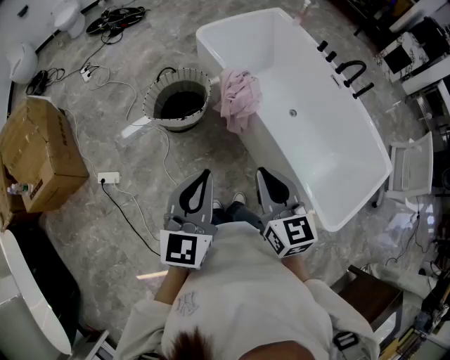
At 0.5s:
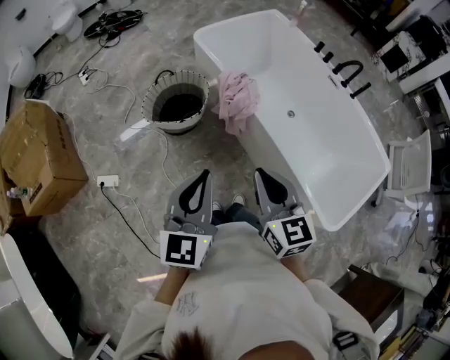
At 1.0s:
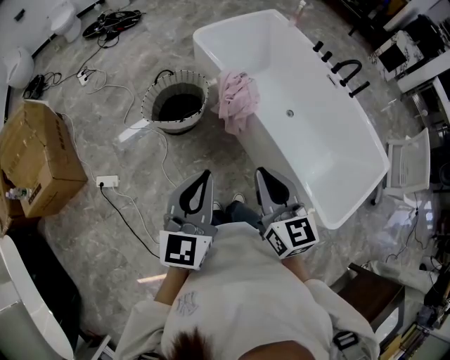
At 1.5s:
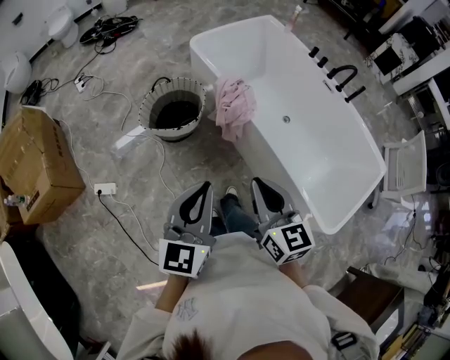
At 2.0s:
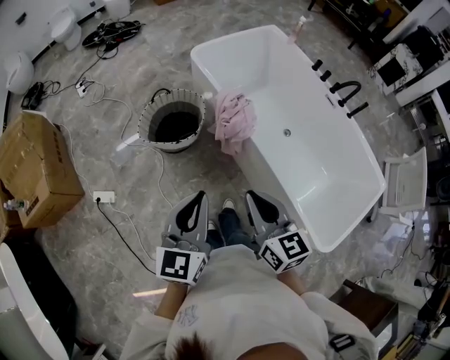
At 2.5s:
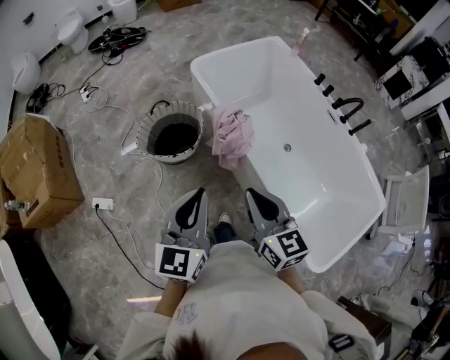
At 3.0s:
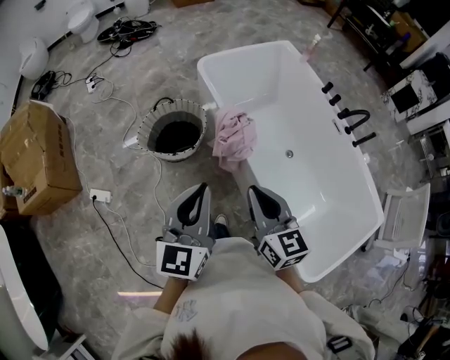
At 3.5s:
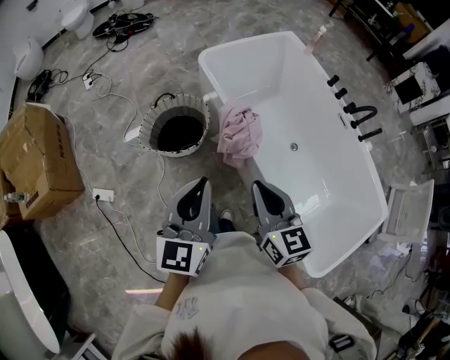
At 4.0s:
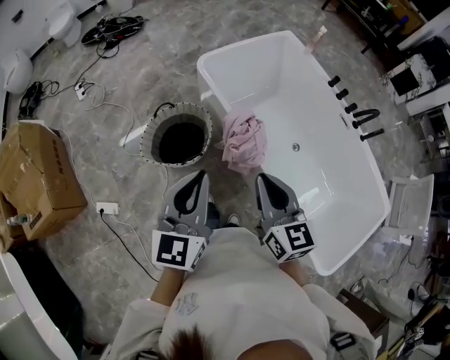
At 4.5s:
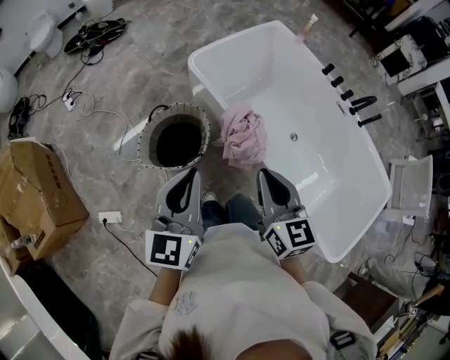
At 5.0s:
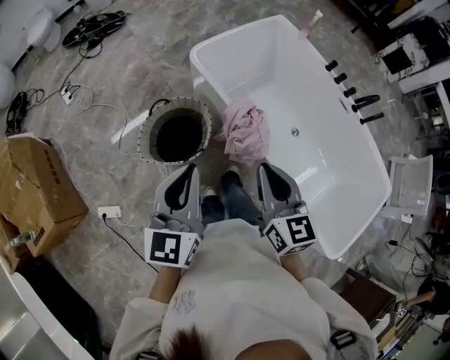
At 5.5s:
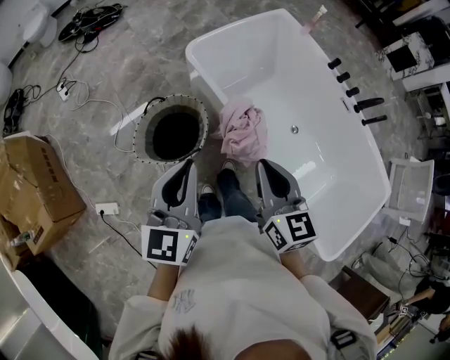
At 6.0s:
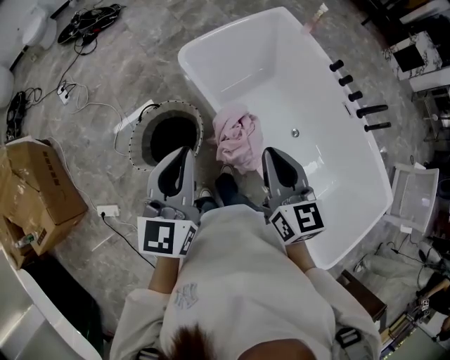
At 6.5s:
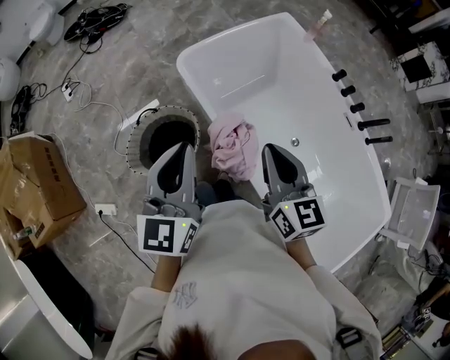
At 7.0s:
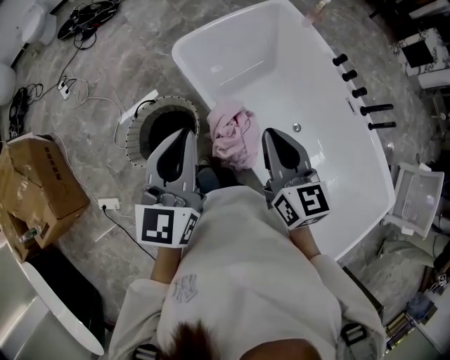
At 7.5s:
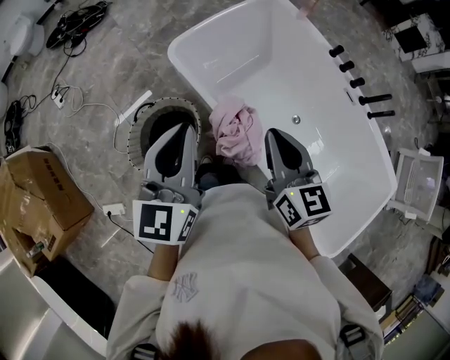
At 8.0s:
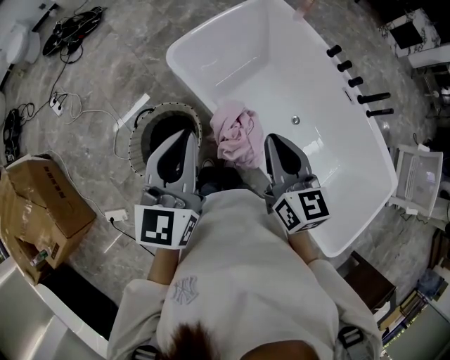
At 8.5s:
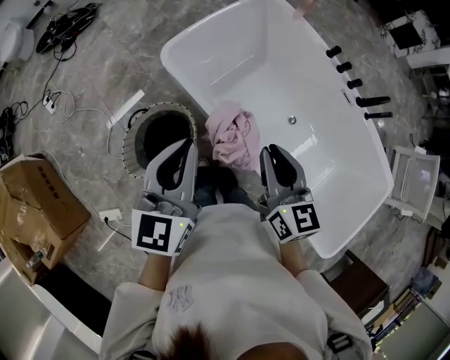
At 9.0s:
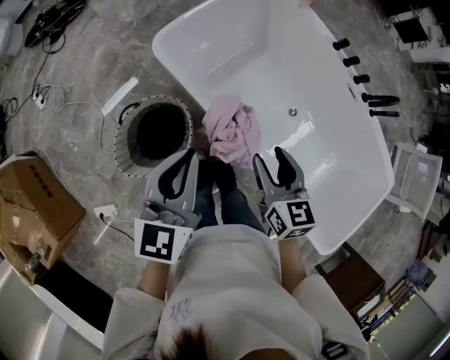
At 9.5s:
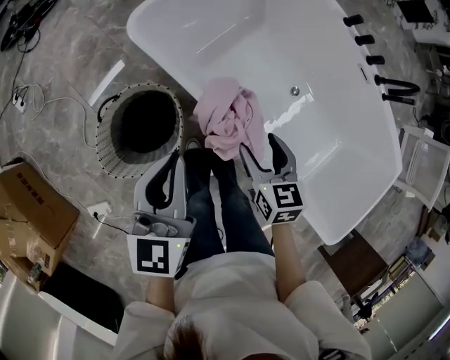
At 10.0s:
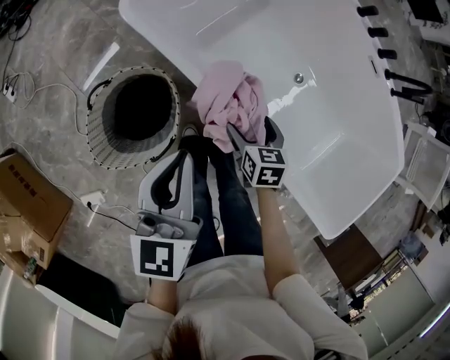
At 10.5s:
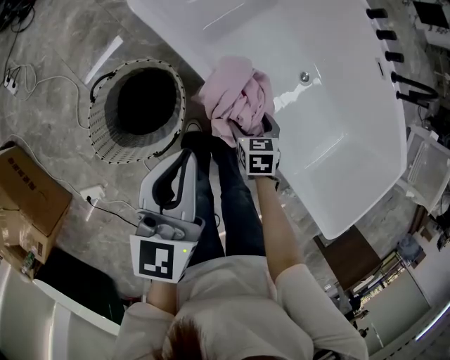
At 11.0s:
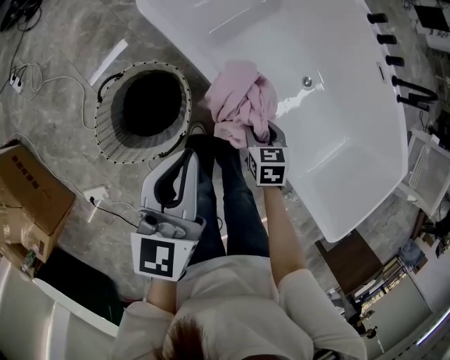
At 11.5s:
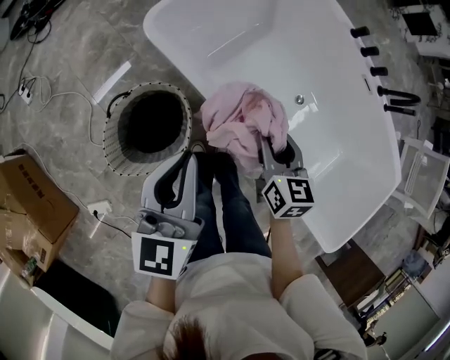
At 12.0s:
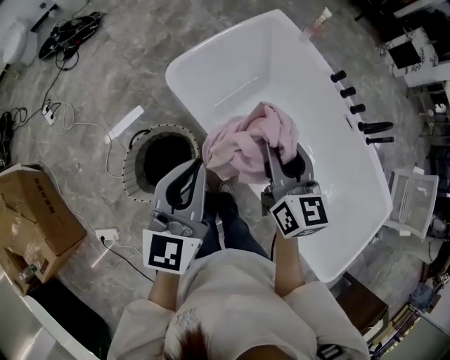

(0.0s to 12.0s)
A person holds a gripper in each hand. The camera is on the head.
0.0s - 2.0s: The grippers move only a little.
2.0s - 4.0s: Both grippers move forward, roughly 20 cm.
4.0s - 6.0s: Both grippers move forward, about 15 cm.
6.0s - 8.0s: The grippers both shift forward by about 5 cm.
8.0s - 10.0s: The right gripper shifts roughly 40 cm downward, points its fingers approximately 40 degrees further downward, and opens; the left gripper travels downward by roughly 20 cm, and rotates approximately 20 degrees.
10.0s - 12.0s: The right gripper is displaced upward by some 35 cm, tips its fingers upward by about 40 degrees, and closes. Meanwhile the left gripper is displaced upward by about 20 cm.

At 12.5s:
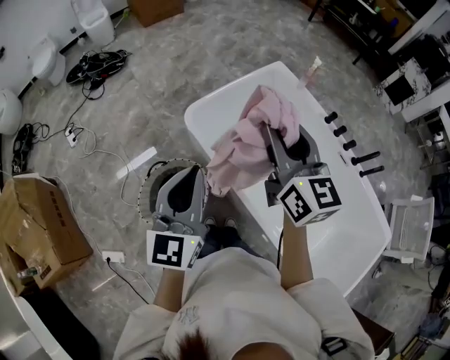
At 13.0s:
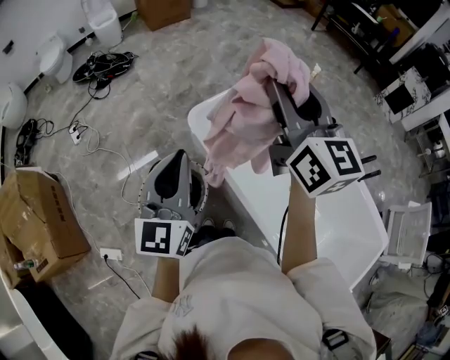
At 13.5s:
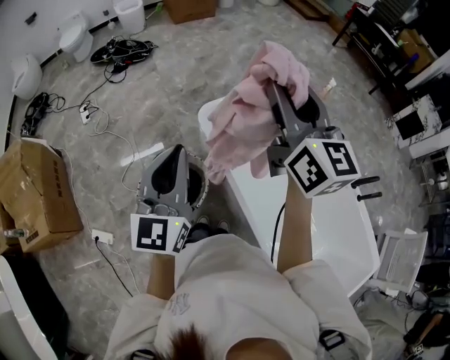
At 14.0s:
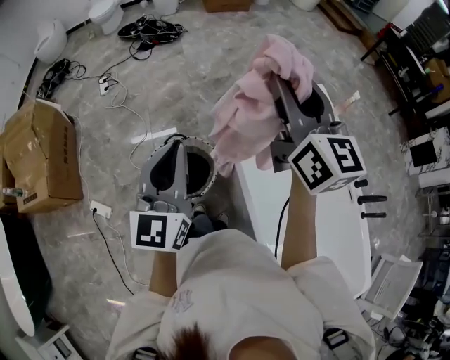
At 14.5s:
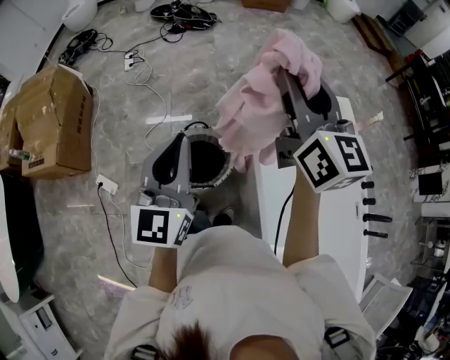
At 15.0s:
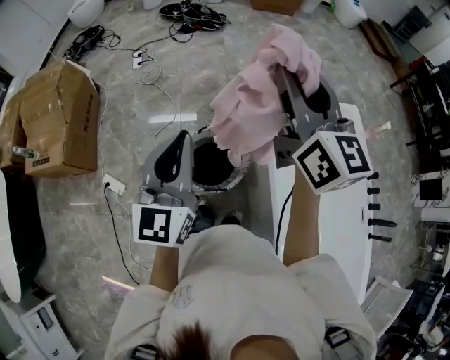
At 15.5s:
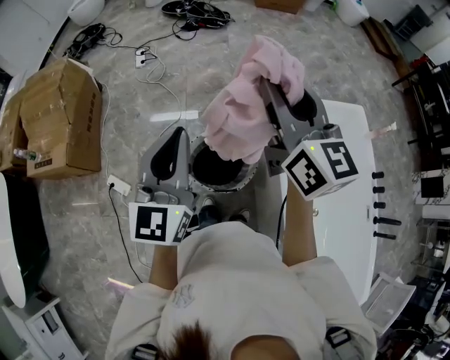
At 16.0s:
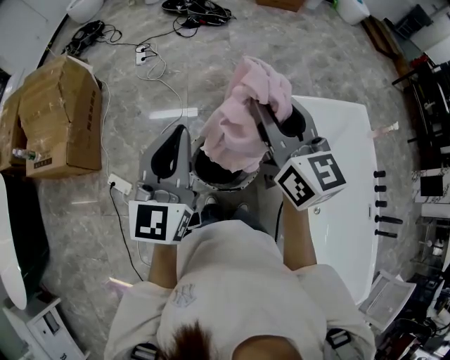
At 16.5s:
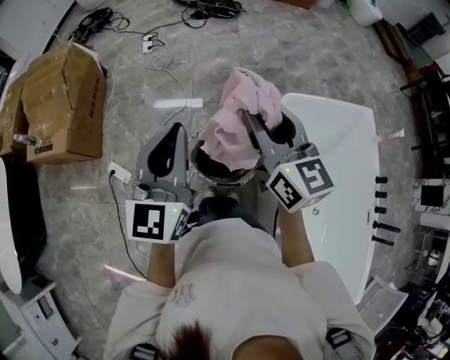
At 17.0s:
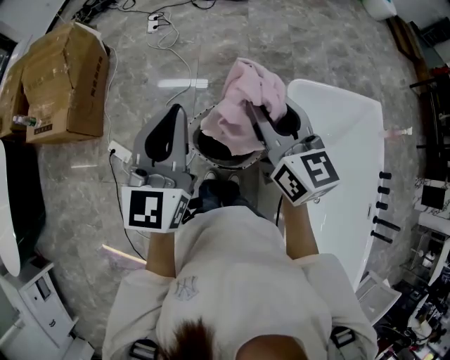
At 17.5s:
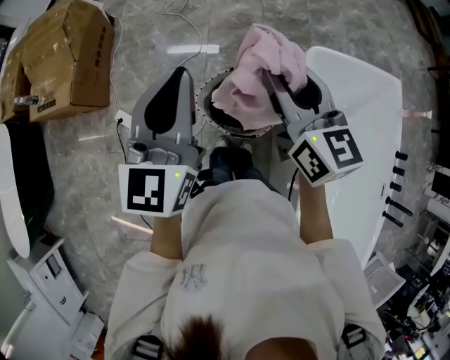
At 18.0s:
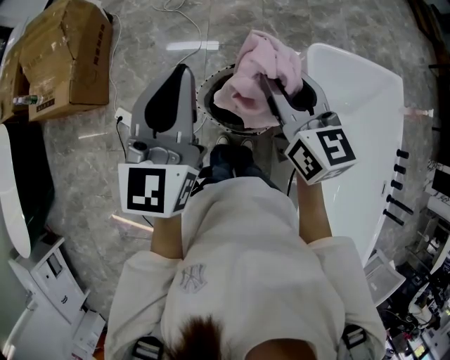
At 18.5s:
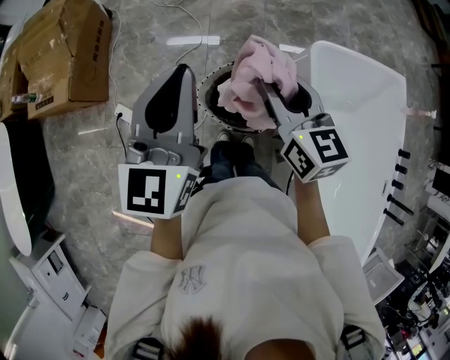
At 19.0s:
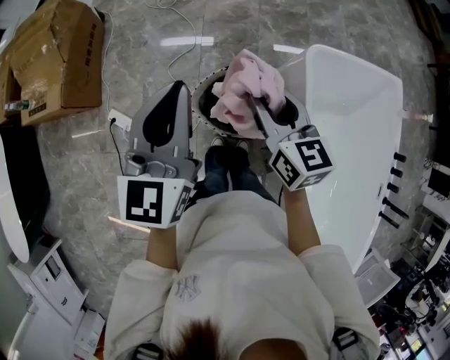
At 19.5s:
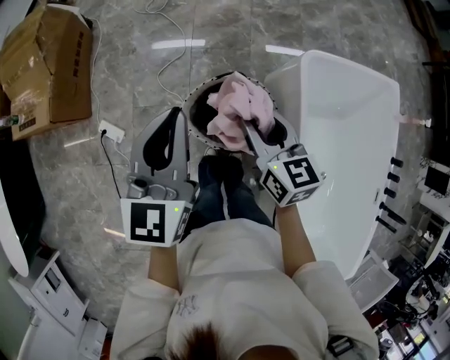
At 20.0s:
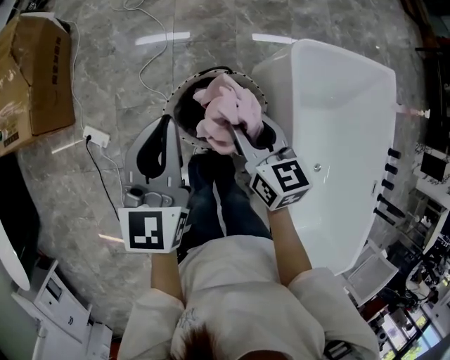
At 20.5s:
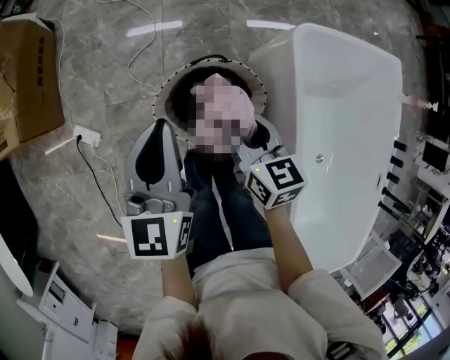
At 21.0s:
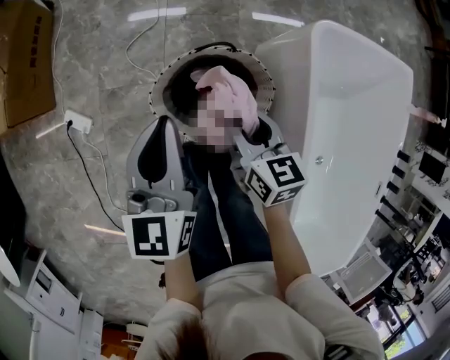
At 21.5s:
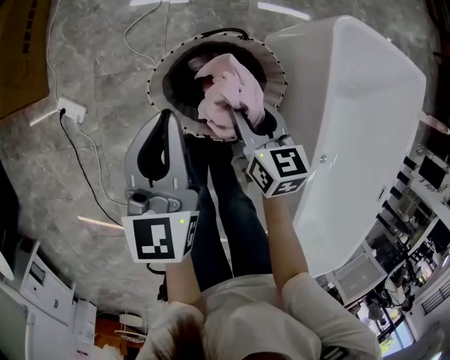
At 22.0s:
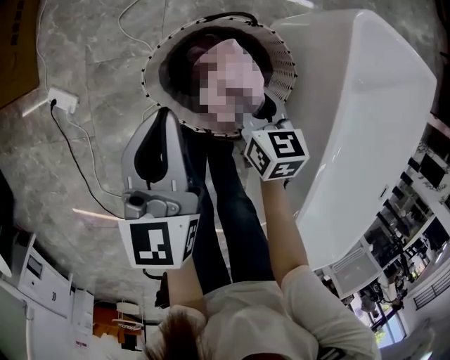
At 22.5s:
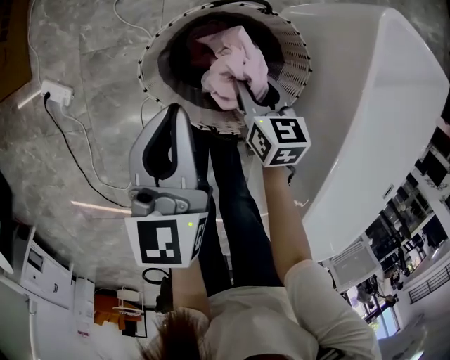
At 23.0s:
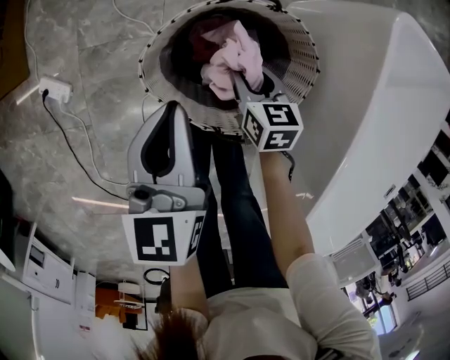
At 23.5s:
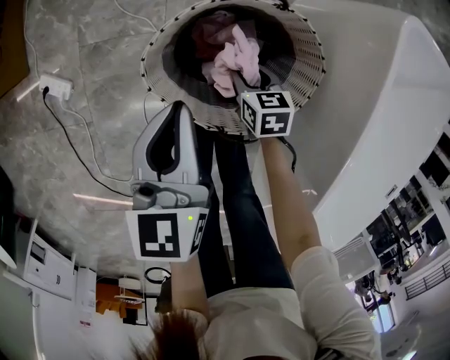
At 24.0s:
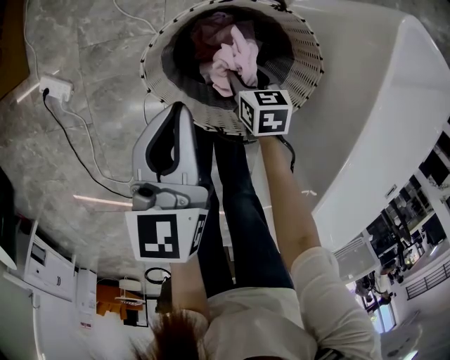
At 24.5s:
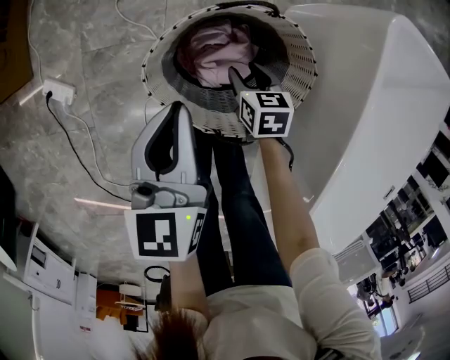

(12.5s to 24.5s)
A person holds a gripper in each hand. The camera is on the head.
12.5s - 14.5s: The left gripper changes place by about 15 cm, and turns by about 30 degrees. The right gripper changes place by roughly 20 cm, and changes its angle by approximately 30 degrees.
14.5s - 16.5s: The left gripper heads to the left, covering roughly 15 cm; the right gripper shifts about 25 cm to the left and downward.
16.5s - 18.5s: The right gripper moves downward, about 10 cm.
18.5s - 20.5s: The two grippers go some 25 cm downward.
20.5s - 22.5s: The two grippers go roughly 25 cm downward.
22.5s - 24.5s: The right gripper moves downward, roughly 10 cm.

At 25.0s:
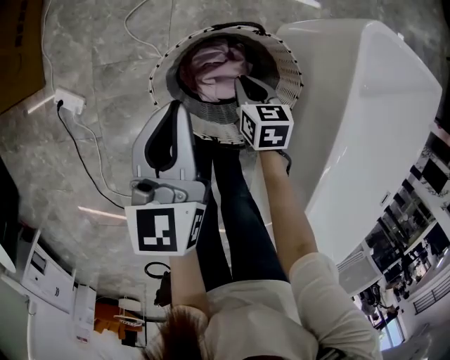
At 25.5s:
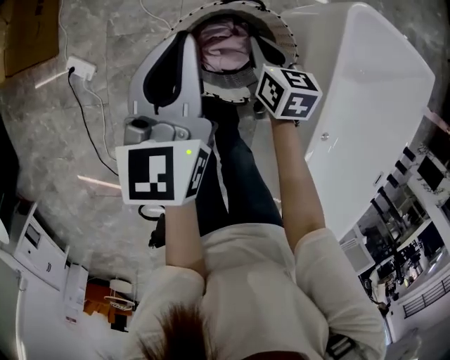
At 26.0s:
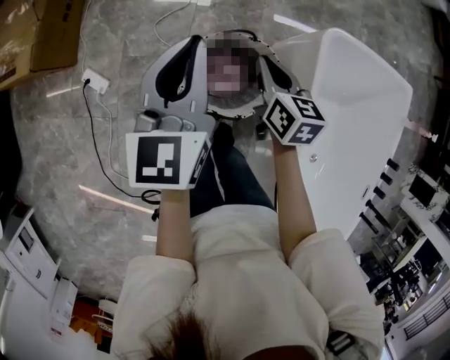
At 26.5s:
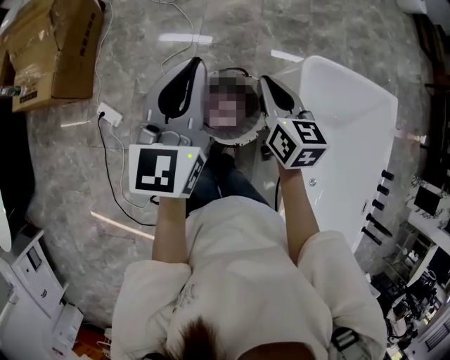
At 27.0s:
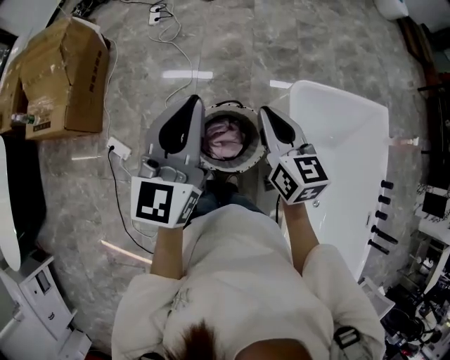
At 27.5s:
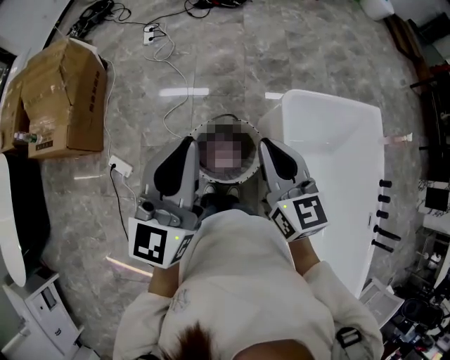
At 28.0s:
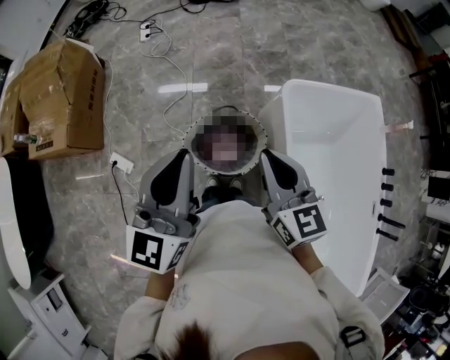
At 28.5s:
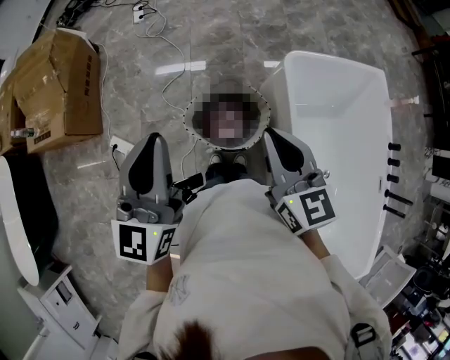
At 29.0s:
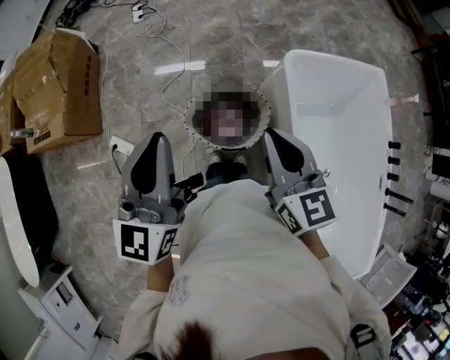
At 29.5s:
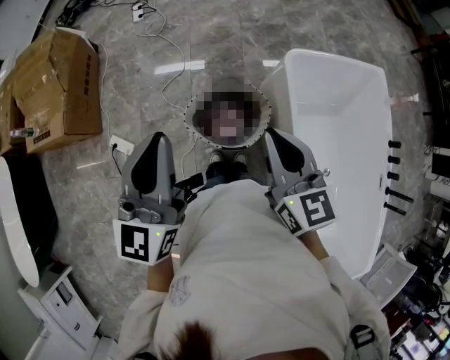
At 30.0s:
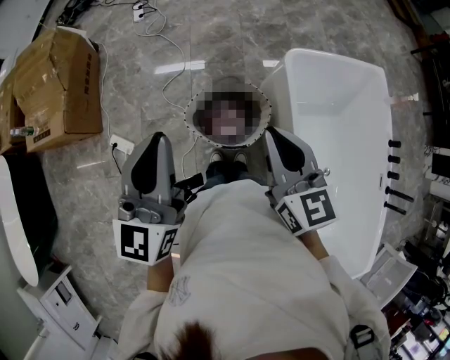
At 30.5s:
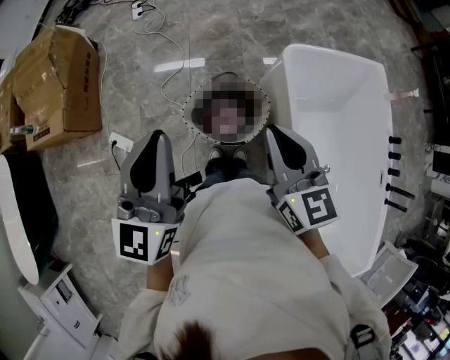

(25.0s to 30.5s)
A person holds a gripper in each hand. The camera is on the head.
25.0s - 27.0s: Both grippers move upward, approximately 50 cm. The left gripper tilts its fingers about 30 degrees upward. Meanwhile the right gripper tilts its fingers some 40 degrees upward.
27.0s - 28.5s: The left gripper moves backward and to the left, about 15 cm; the right gripper shifts approximately 15 cm backward.
28.5s - 30.5s: The grippers stay close to where they were, moving slightly.
